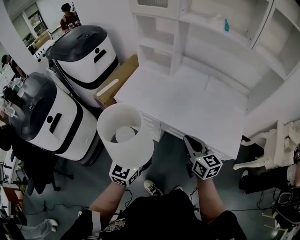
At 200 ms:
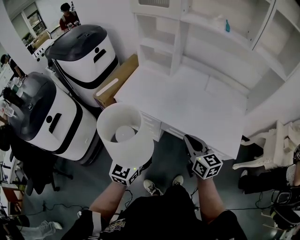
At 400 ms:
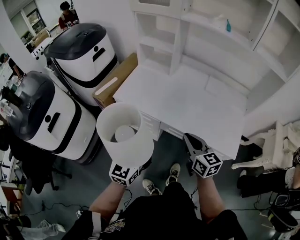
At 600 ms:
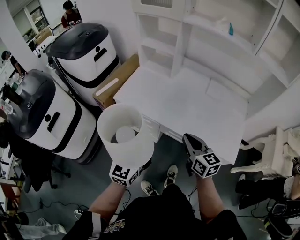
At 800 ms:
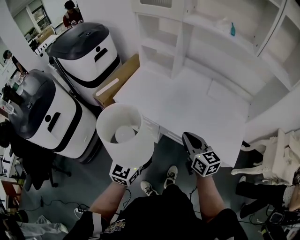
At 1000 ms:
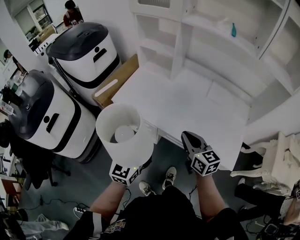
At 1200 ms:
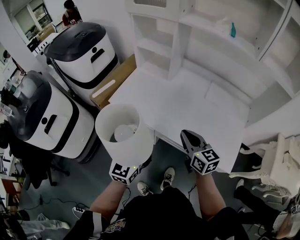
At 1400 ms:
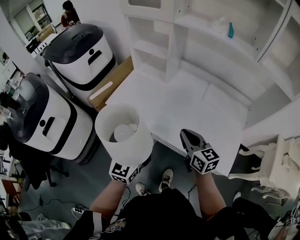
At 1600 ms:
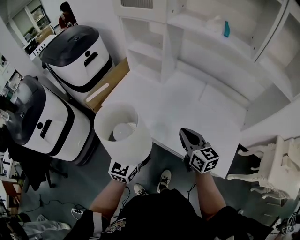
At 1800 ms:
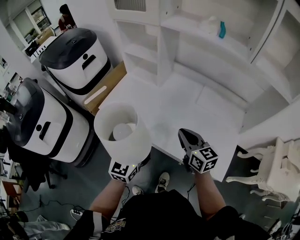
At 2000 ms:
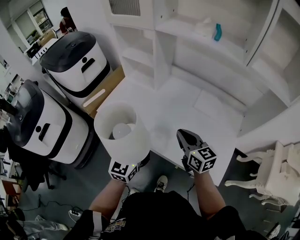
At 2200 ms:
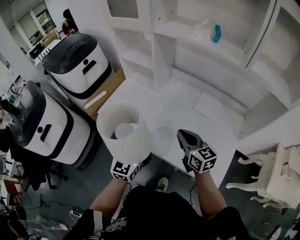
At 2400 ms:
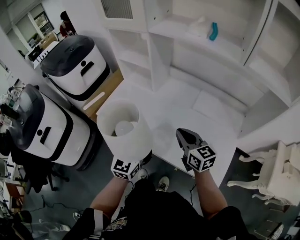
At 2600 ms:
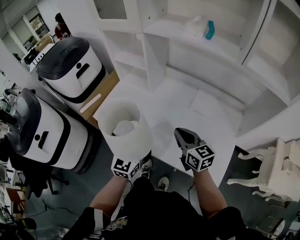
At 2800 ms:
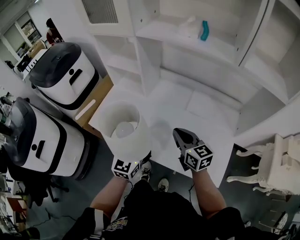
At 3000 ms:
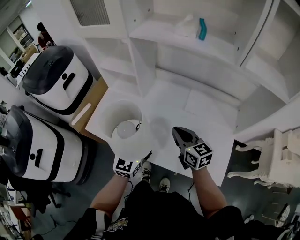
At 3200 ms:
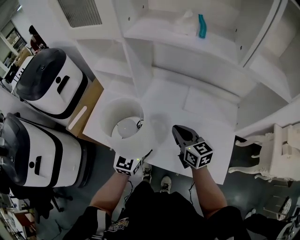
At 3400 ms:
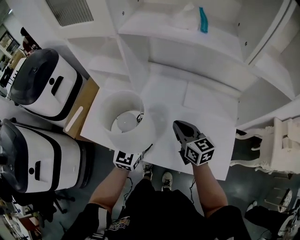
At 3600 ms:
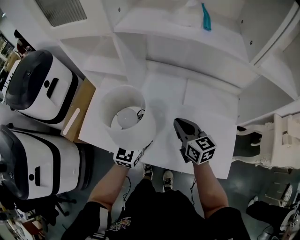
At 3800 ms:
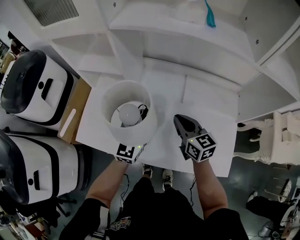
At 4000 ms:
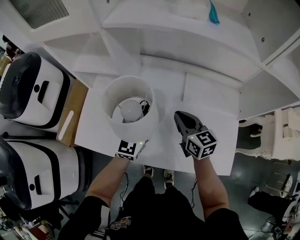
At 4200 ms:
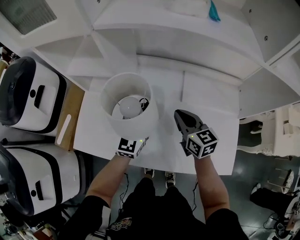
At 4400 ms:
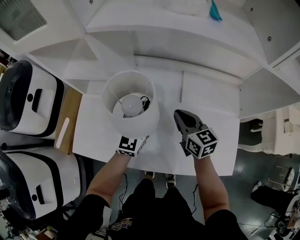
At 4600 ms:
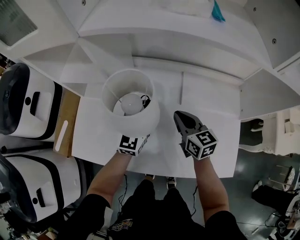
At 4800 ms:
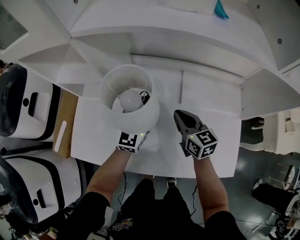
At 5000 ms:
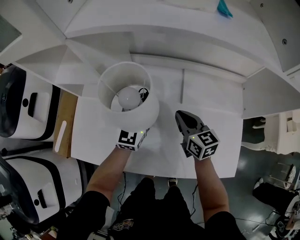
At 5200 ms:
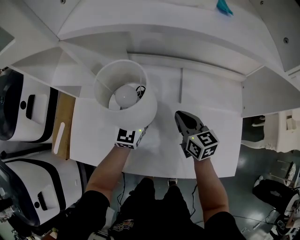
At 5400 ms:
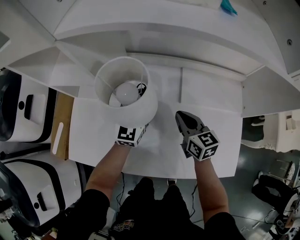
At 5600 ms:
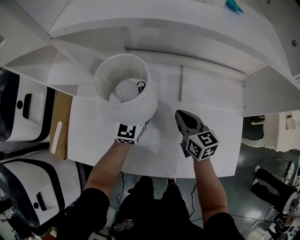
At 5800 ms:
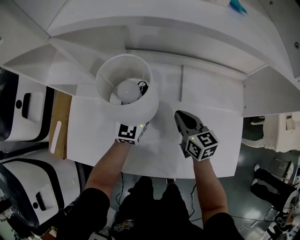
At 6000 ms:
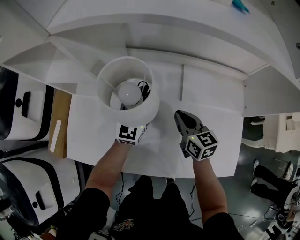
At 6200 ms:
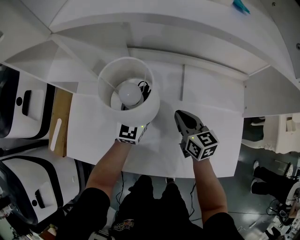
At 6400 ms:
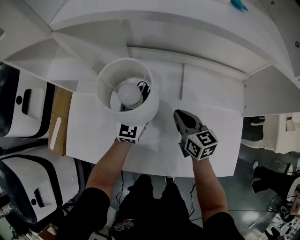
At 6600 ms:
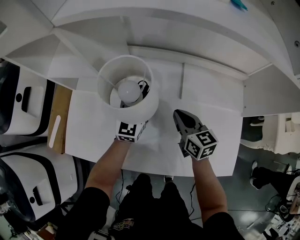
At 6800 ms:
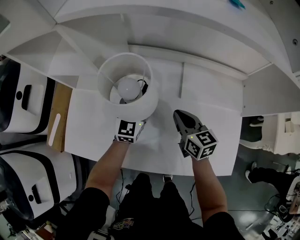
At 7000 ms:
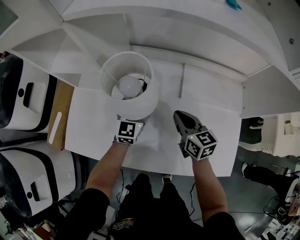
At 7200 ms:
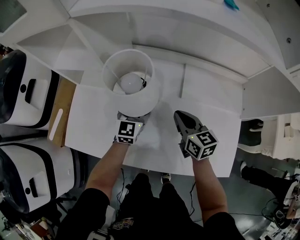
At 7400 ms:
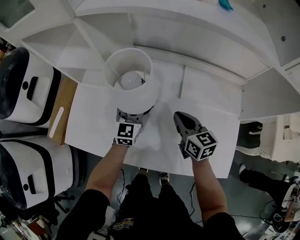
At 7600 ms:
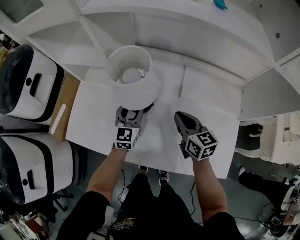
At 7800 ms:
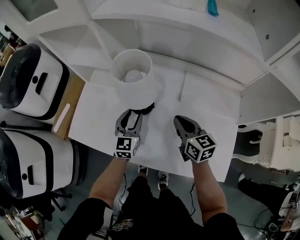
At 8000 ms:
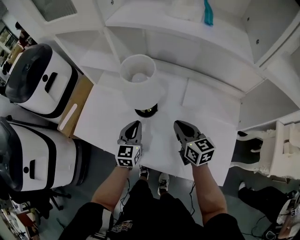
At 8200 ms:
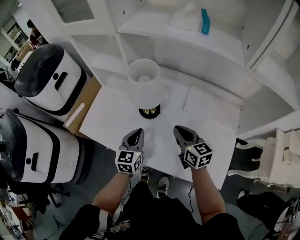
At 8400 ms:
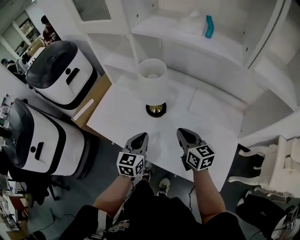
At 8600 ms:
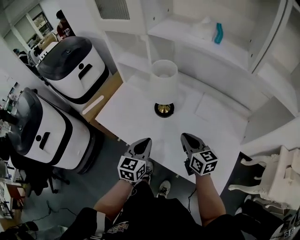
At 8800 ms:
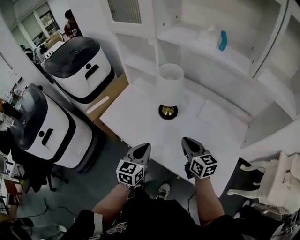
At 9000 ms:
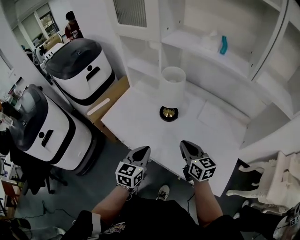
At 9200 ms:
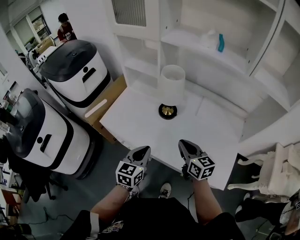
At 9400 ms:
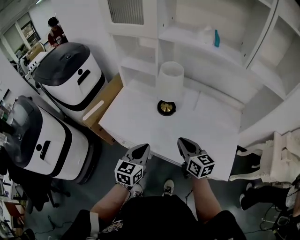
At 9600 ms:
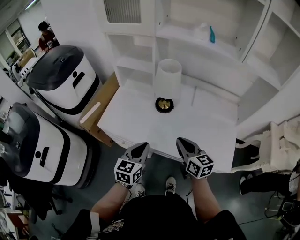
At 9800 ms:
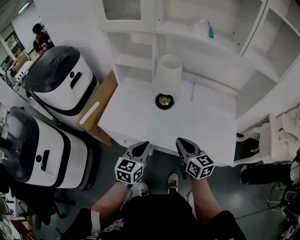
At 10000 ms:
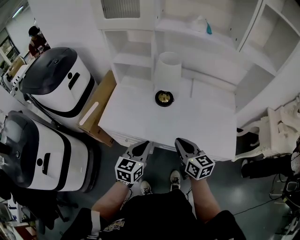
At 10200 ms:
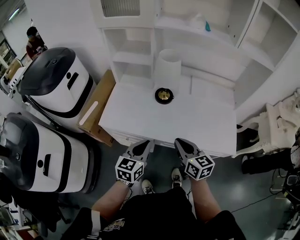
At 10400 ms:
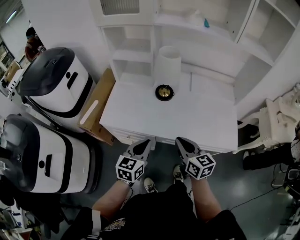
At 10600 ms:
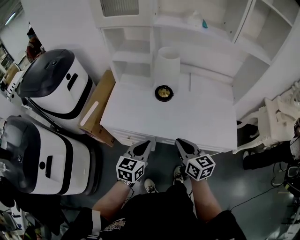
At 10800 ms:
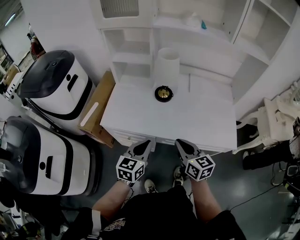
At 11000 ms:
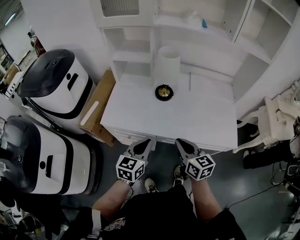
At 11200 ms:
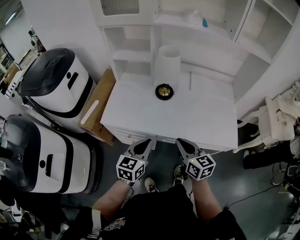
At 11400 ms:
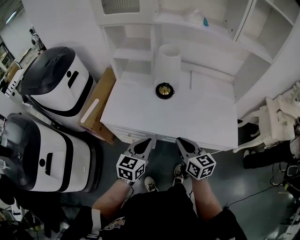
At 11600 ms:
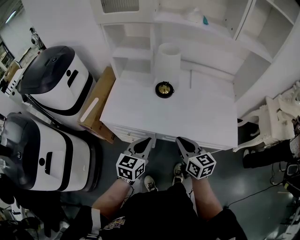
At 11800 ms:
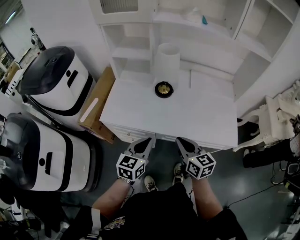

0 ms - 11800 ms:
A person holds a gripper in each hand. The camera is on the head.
0 ms - 1400 ms: The grippers both shift forward and to the right by some 10 cm.
1400 ms - 3000 ms: The grippers both shift forward and to the right by roughly 15 cm.
3000 ms - 4400 ms: The two grippers go approximately 20 cm forward and downward.
4400 ms - 6000 ms: The right gripper moves downward, some 5 cm. The left gripper shifts roughly 5 cm forward.
6000 ms - 7400 ms: The left gripper ends up roughly 5 cm from where it was.
7400 ms - 8800 ms: The right gripper heads backward and upward, covering about 15 cm; the left gripper heads backward, covering roughly 30 cm, rotates approximately 20 degrees, and closes its fingers.
8800 ms - 10400 ms: The two grippers go some 15 cm to the left and backward. The left gripper swivels roughly 20 degrees.
10400 ms - 11800 ms: The grippers make only small movements.

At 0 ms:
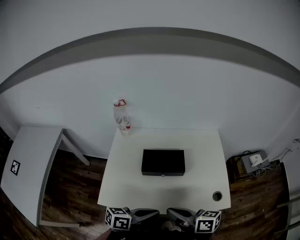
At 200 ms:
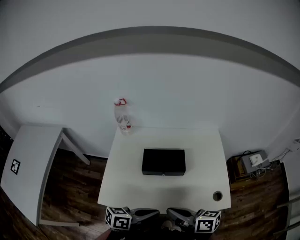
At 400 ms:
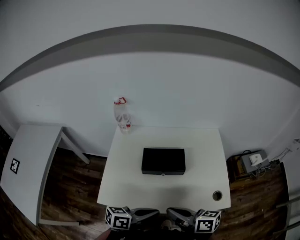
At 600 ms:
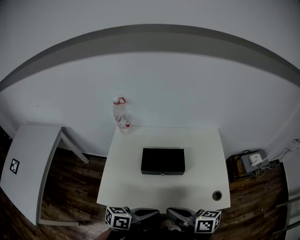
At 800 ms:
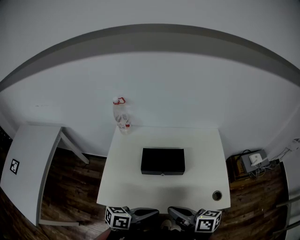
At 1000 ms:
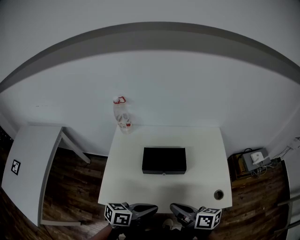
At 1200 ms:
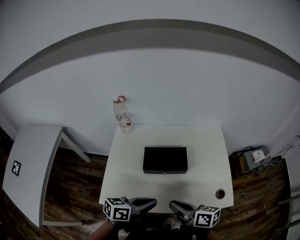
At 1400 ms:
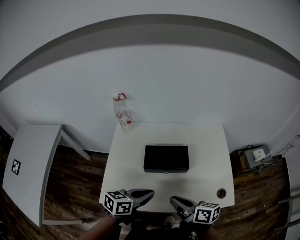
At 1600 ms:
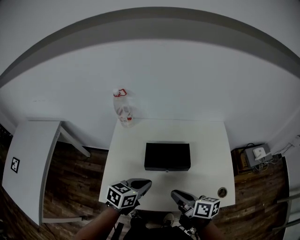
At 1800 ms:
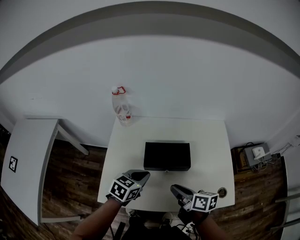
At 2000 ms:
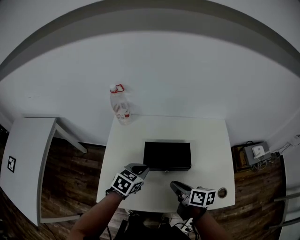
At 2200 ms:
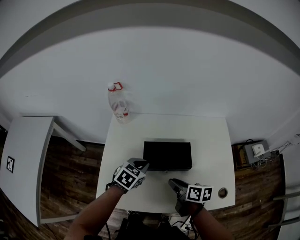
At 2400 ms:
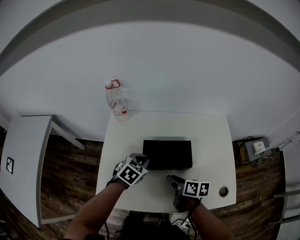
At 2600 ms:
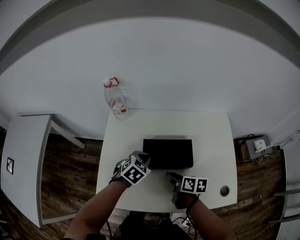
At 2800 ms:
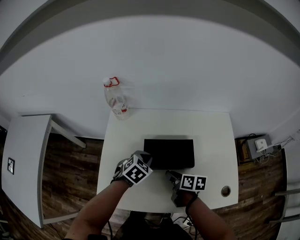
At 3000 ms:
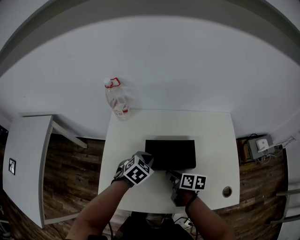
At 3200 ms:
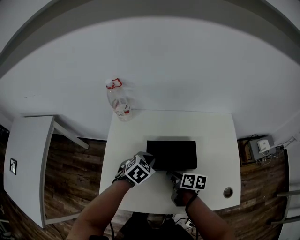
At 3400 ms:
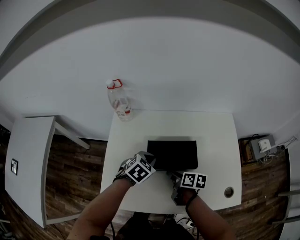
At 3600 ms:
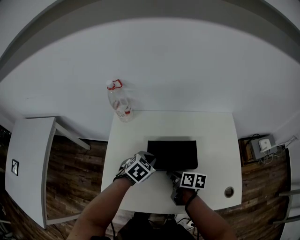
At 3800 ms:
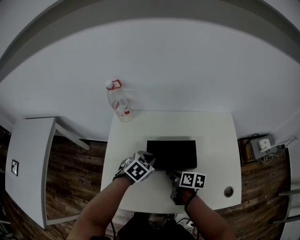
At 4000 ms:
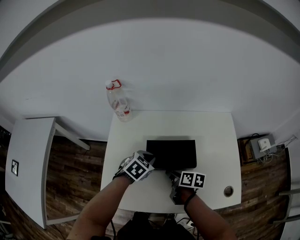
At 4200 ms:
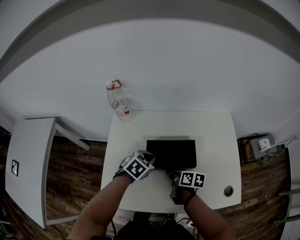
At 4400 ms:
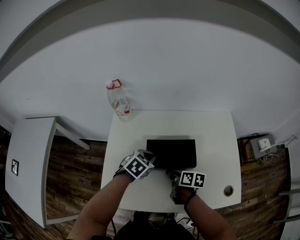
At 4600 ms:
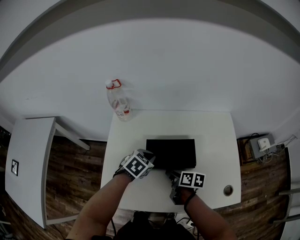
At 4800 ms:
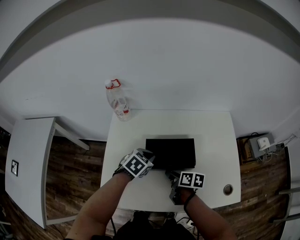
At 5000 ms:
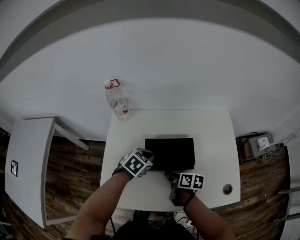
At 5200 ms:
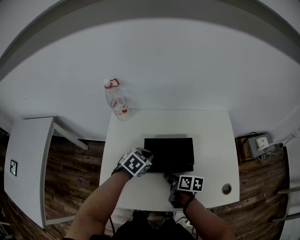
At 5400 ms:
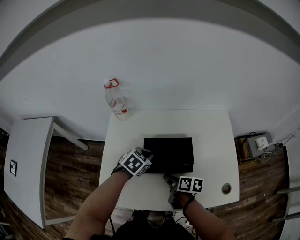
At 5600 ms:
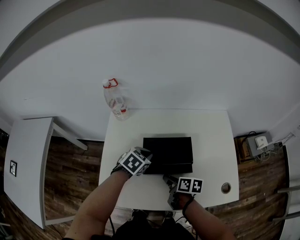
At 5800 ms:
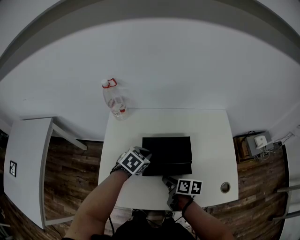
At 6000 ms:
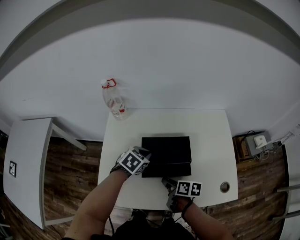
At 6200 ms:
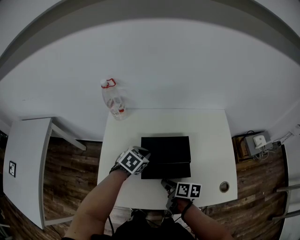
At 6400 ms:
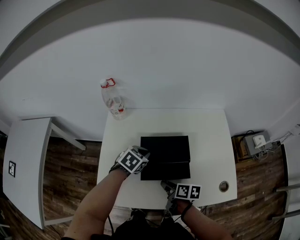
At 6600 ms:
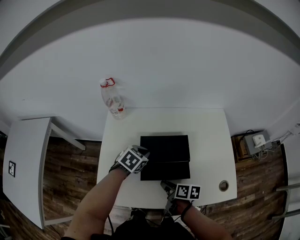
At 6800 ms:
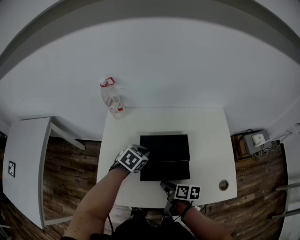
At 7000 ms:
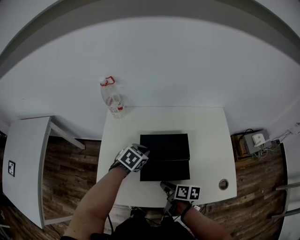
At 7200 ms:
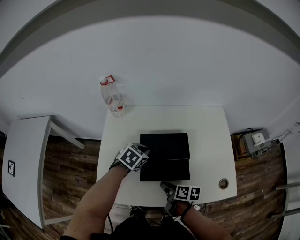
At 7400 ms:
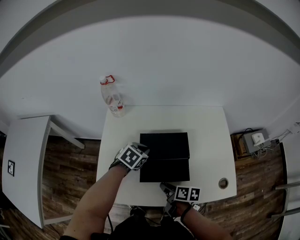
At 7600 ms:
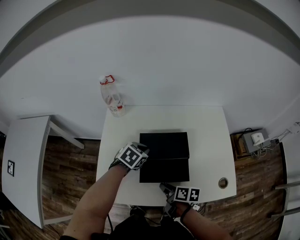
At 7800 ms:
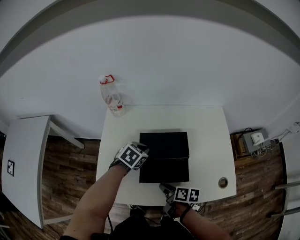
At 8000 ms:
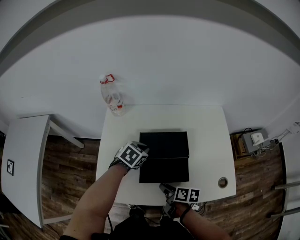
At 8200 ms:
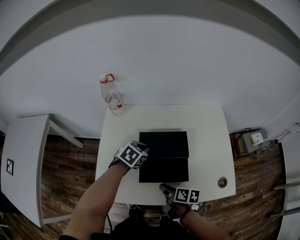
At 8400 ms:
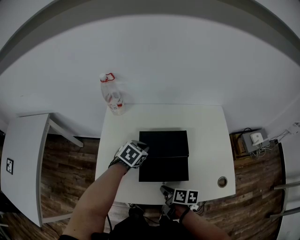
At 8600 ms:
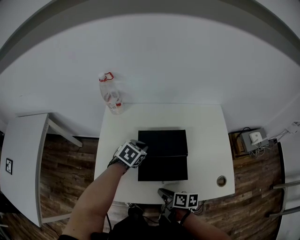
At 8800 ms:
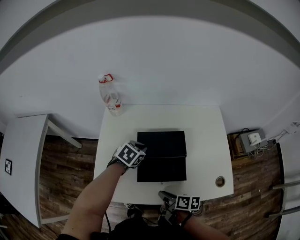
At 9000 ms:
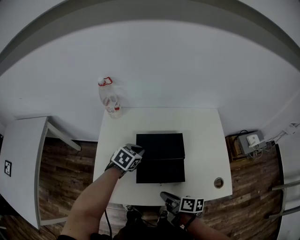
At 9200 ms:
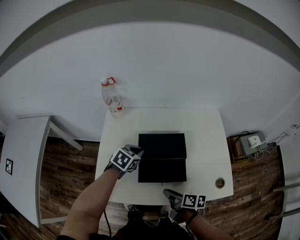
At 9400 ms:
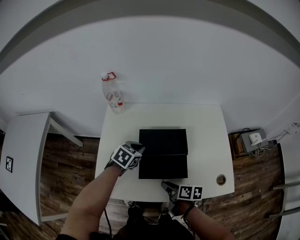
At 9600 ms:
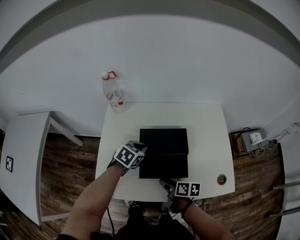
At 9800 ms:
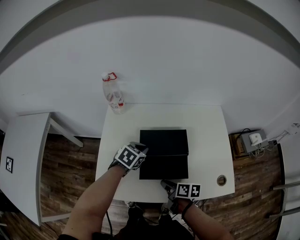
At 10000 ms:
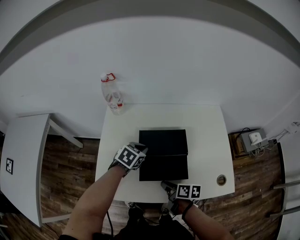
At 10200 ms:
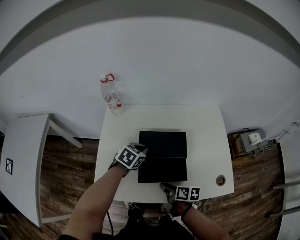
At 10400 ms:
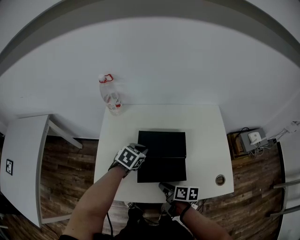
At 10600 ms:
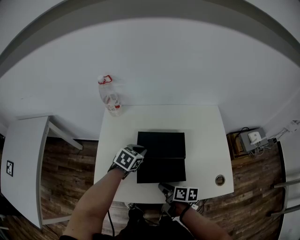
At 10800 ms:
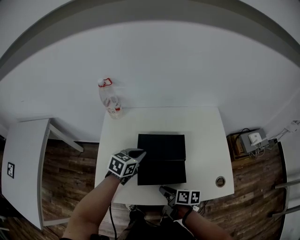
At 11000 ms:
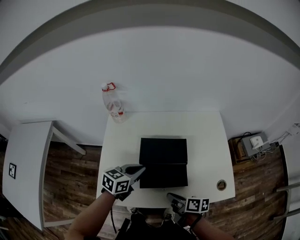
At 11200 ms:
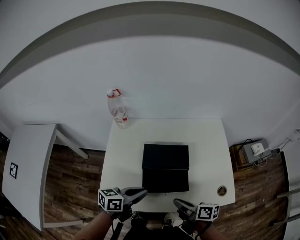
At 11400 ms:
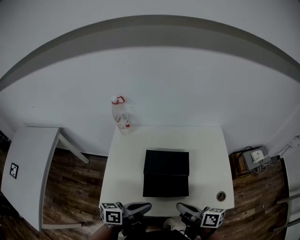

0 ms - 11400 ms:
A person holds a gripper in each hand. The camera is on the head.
0 ms - 1400 ms: The right gripper travels forward by some 5 cm. The left gripper is displaced forward and to the left by about 10 cm.
1400 ms - 2800 ms: The left gripper travels forward and downward by roughly 20 cm, and tilts its fingers about 30 degrees downward. Meanwhile the right gripper heads downward and forward, covering about 20 cm, and turns by roughly 20 degrees.
2800 ms - 5600 ms: The grippers make only small movements.
5600 ms - 7200 ms: The right gripper goes some 5 cm backward.
7200 ms - 8600 ms: The grippers make only small movements.
8600 ms - 10000 ms: There are only small adjustments of the grippers.
10000 ms - 11400 ms: The right gripper is displaced upward by about 15 cm, and changes its angle by about 20 degrees. Meanwhile the left gripper travels backward and upward by approximately 25 cm, and tilts its fingers some 40 degrees upward.

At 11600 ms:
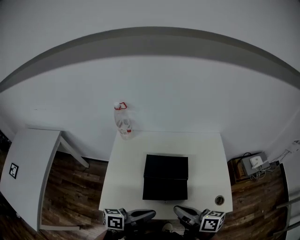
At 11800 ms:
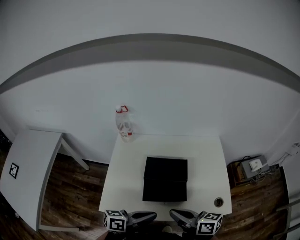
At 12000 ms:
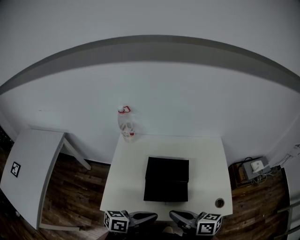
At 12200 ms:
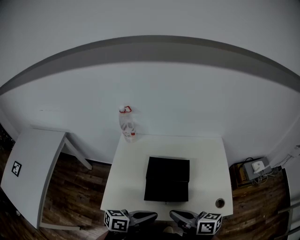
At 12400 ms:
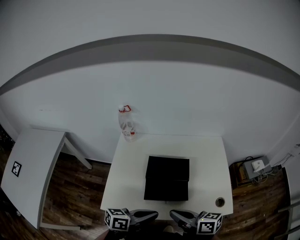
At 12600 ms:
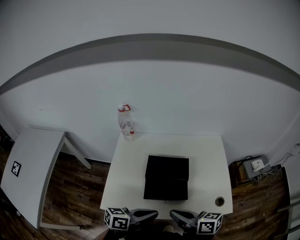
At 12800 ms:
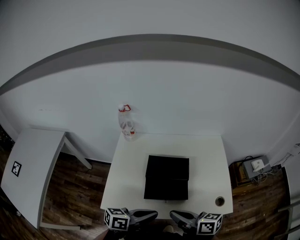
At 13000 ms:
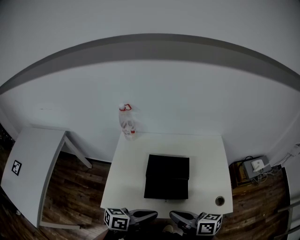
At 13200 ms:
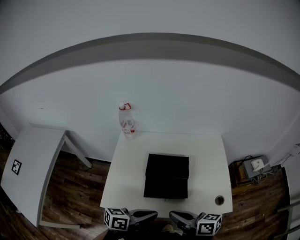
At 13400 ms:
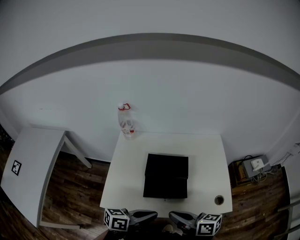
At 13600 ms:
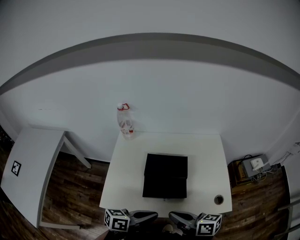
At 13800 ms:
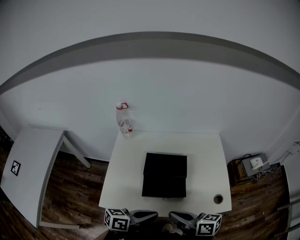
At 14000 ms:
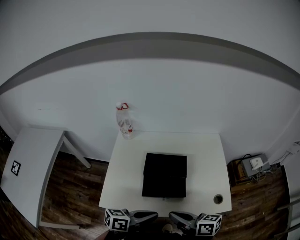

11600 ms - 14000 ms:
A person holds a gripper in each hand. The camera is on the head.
11600 ms - 14000 ms: There are only small adjustments of the grippers.
